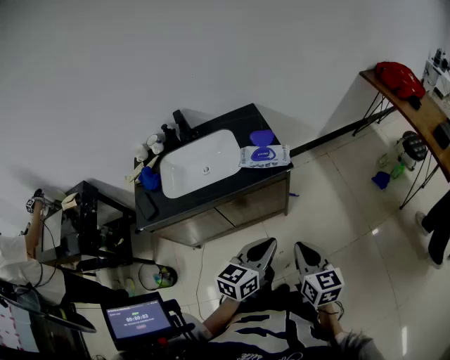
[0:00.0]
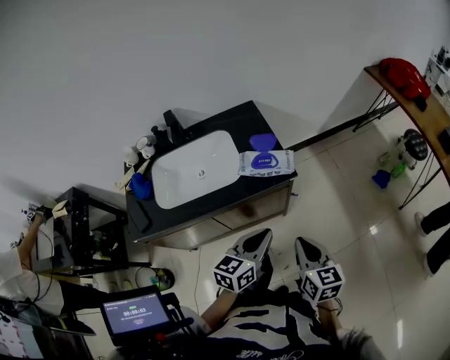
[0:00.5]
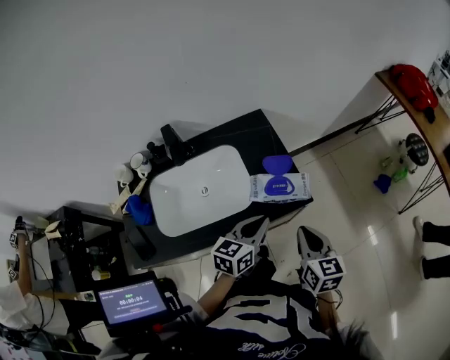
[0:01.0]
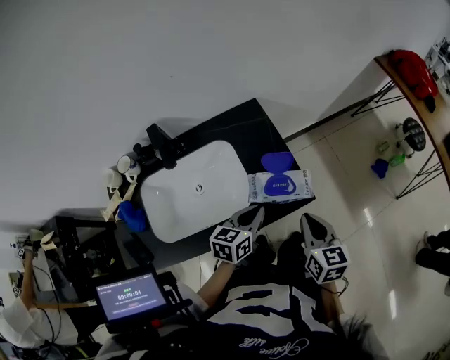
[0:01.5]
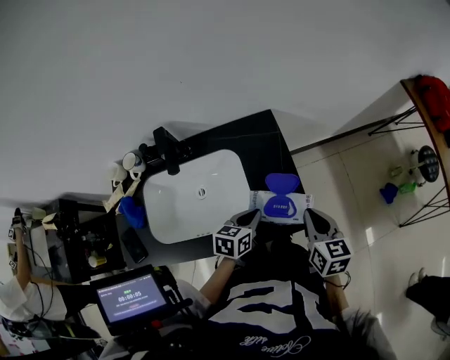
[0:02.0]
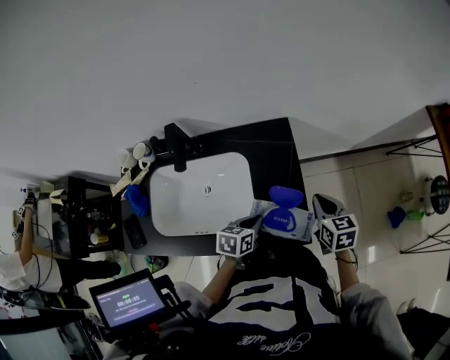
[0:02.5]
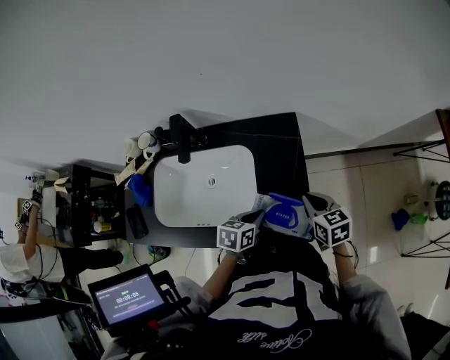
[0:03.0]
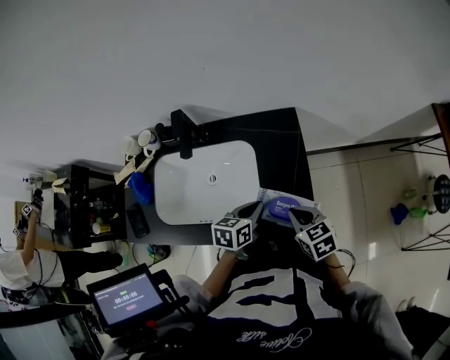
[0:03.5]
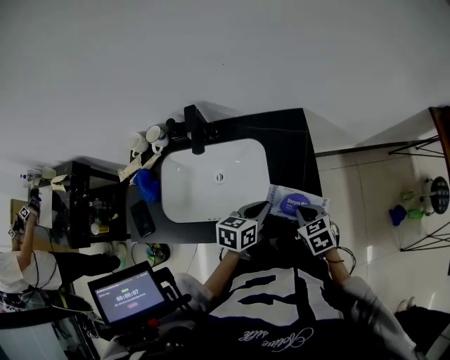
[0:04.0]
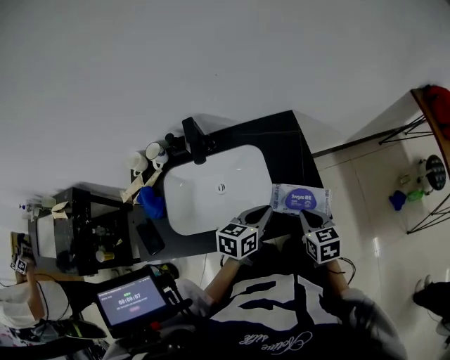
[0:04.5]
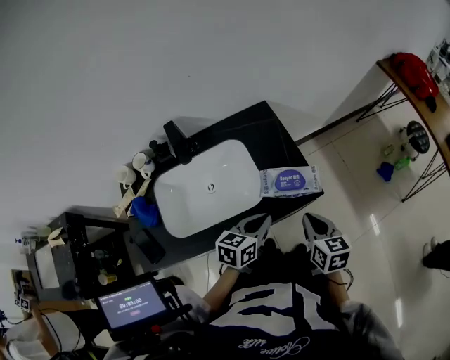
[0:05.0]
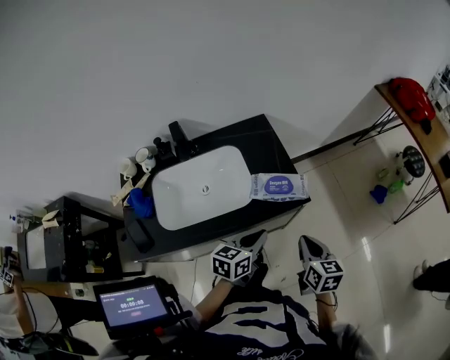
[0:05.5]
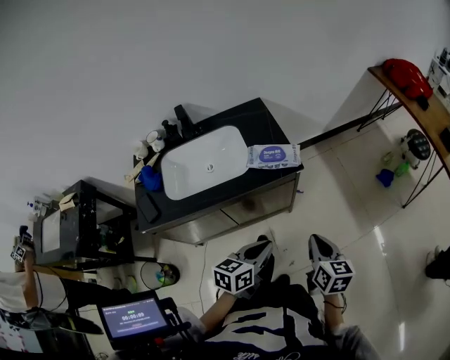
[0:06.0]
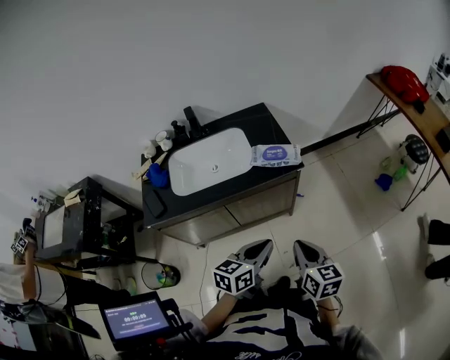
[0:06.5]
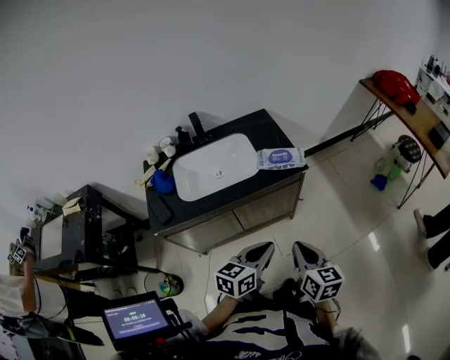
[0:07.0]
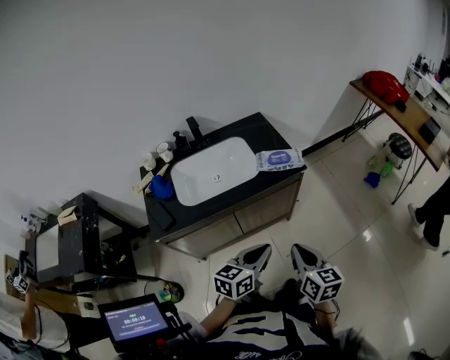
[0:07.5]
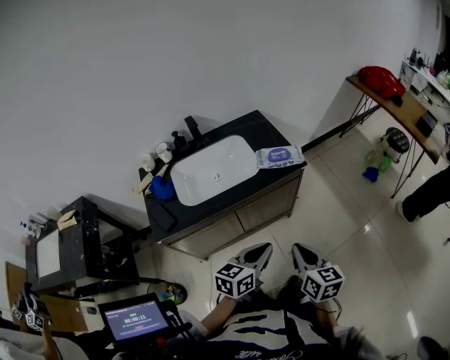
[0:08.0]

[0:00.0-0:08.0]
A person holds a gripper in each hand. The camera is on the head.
0:00.0 to 0:02.0: The left gripper heads forward, to the left and downward, covering approximately 40 cm, and rotates some 20 degrees. The right gripper heads forward, covering approximately 40 cm.
0:02.0 to 0:04.0: The right gripper moves downward and to the left, approximately 10 cm, and swivels about 40 degrees.
0:04.0 to 0:06.0: The left gripper moves backward, approximately 35 cm. Meanwhile the right gripper shifts roughly 35 cm backward and to the right, and turns by approximately 50 degrees.
0:06.0 to 0:08.0: The left gripper moves to the left and backward, about 10 cm. Meanwhile the right gripper shifts roughly 20 cm to the left and backward.

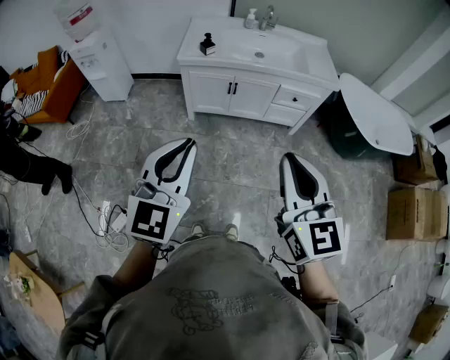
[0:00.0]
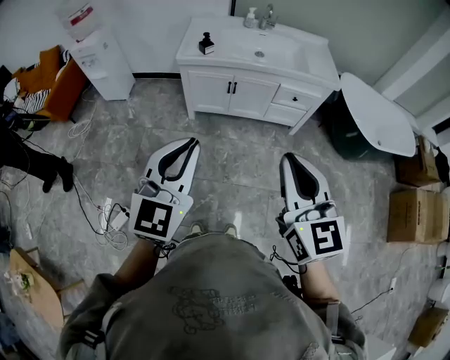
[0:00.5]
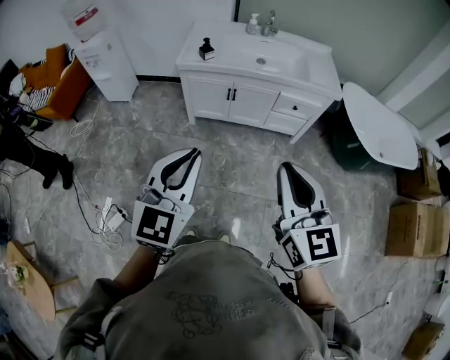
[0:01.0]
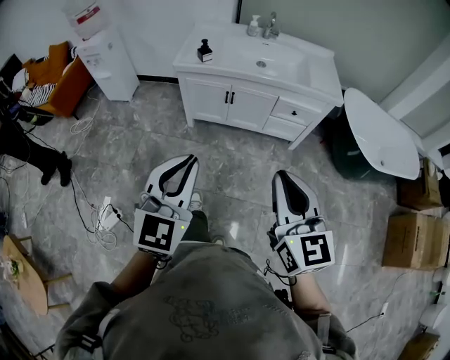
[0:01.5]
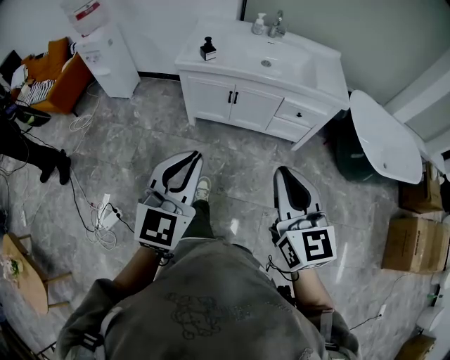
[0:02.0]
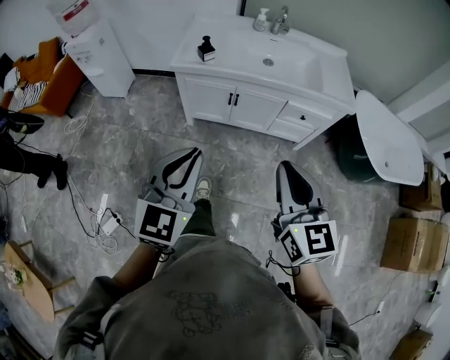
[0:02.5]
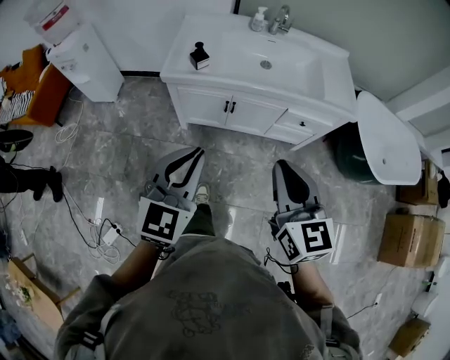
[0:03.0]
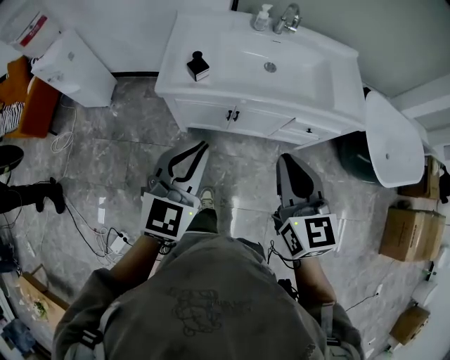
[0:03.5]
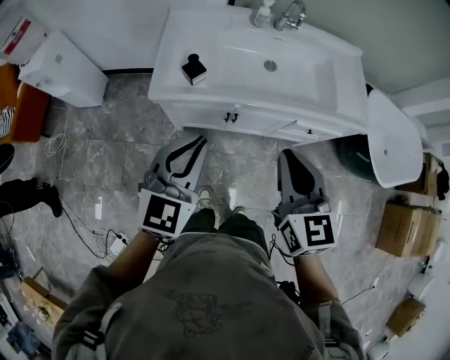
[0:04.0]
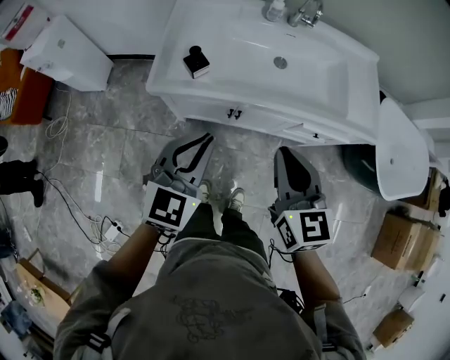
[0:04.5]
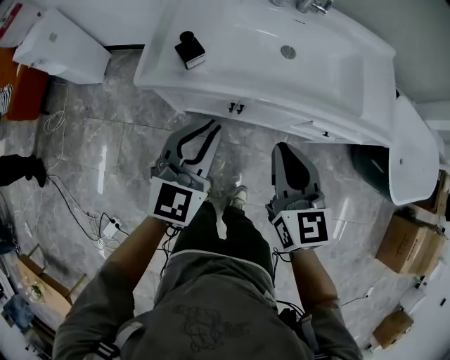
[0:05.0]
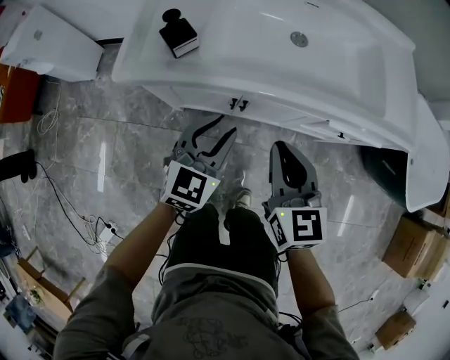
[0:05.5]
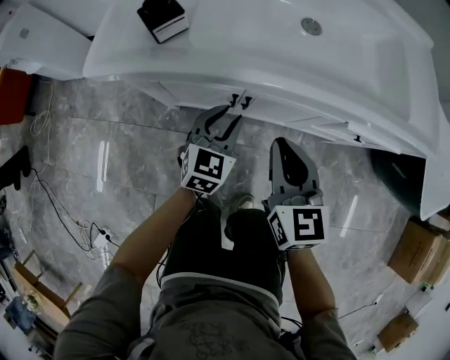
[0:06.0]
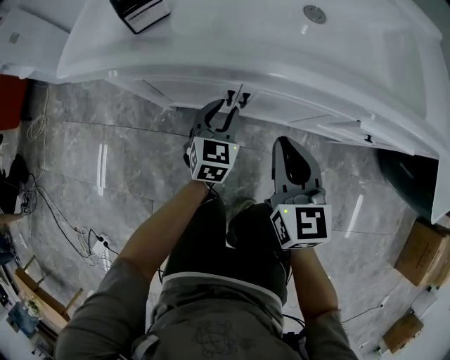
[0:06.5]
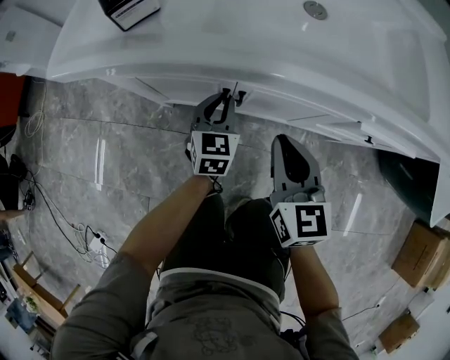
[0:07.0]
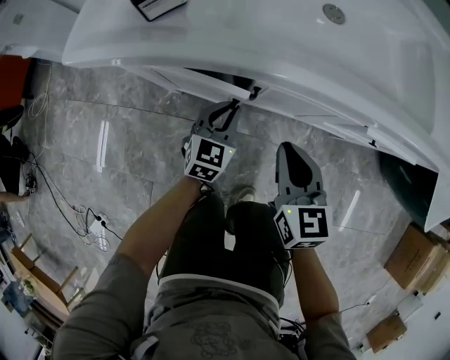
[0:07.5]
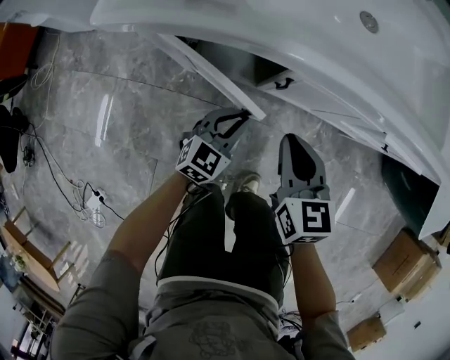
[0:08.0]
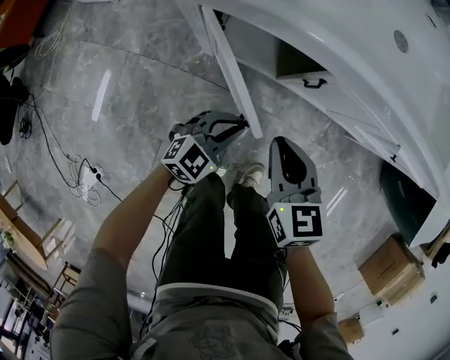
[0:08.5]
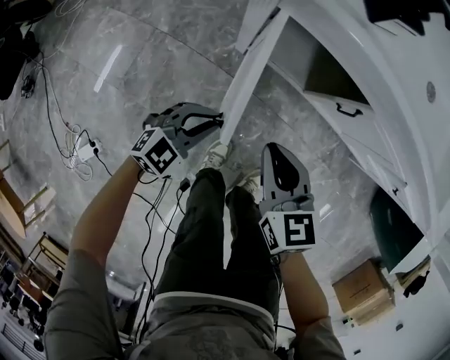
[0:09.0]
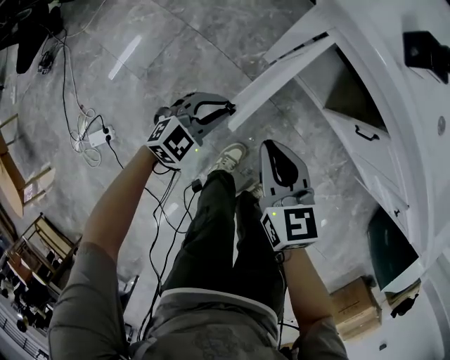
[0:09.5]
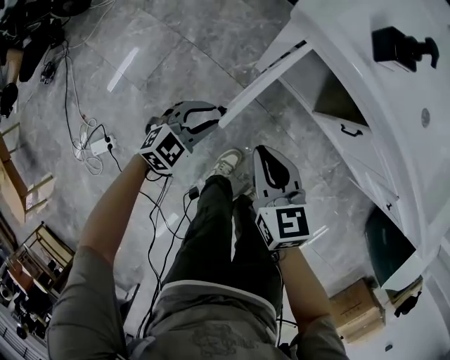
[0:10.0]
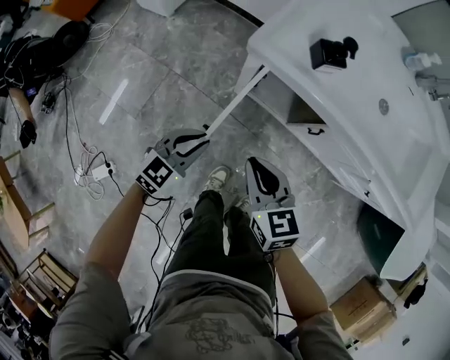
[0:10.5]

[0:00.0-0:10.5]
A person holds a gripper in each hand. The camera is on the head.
0:00.0 to 0:02.0: The right gripper goes about 15 cm forward, to the right and downward, while the left gripper goes roughly 15 cm to the right, forward and downward.
0:02.0 to 0:04.0: The two grippers travel together, forward, about 40 cm.
0:04.0 to 0:06.5: Both grippers travel together downward, about 50 cm. The left gripper swivels roughly 20 degrees, and opens its fingers.
0:06.5 to 0:08.5: The left gripper is displaced backward and to the left by about 20 cm, and changes its angle by roughly 30 degrees. The right gripper goes some 15 cm to the left and backward, and swivels about 20 degrees.
0:08.5 to 0:10.5: Both grippers travel together to the left and upward, roughly 20 cm. The left gripper rotates about 20 degrees.

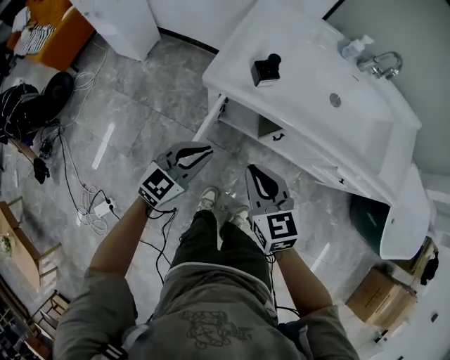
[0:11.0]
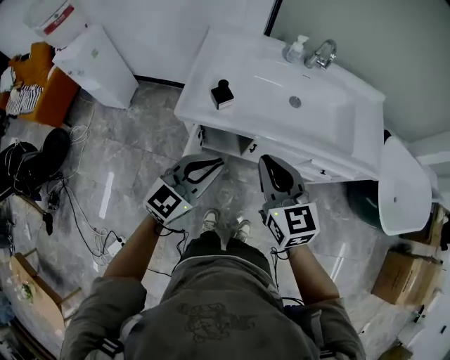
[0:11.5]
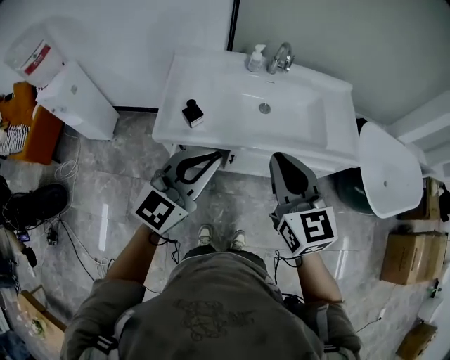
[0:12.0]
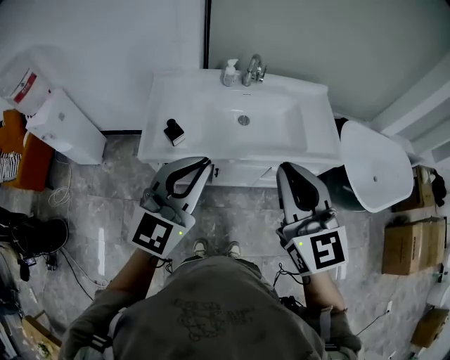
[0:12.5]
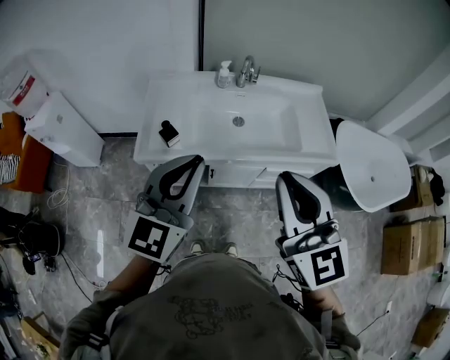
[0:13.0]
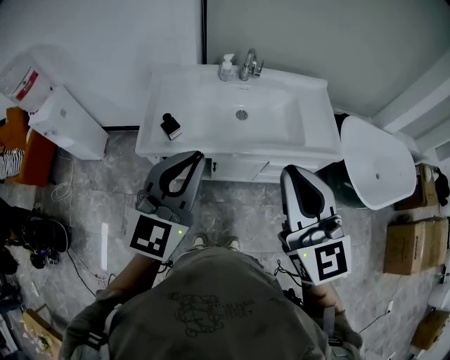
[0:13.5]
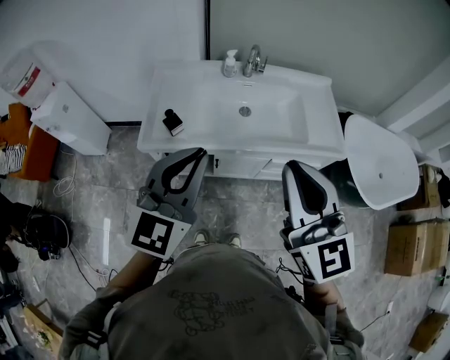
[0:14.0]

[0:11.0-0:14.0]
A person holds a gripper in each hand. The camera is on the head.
0:11.0 to 0:12.5: Both grippers move upward and to the right, roughly 40 cm. The right gripper changes its angle by about 40 degrees. The left gripper rotates roughly 20 degrees.
0:12.5 to 0:14.0: The grippers make only small movements.

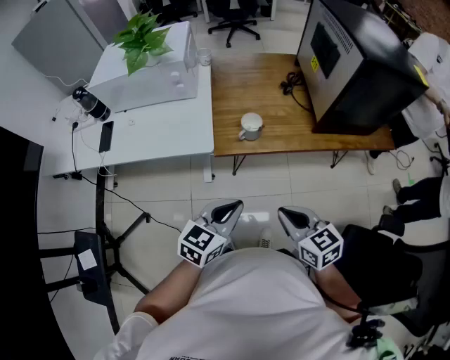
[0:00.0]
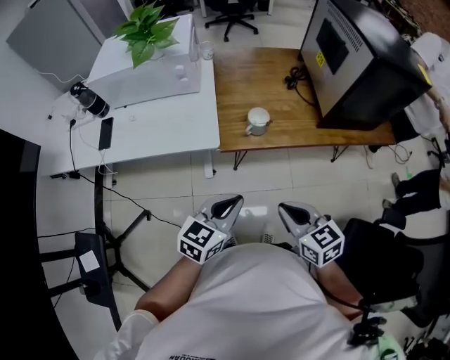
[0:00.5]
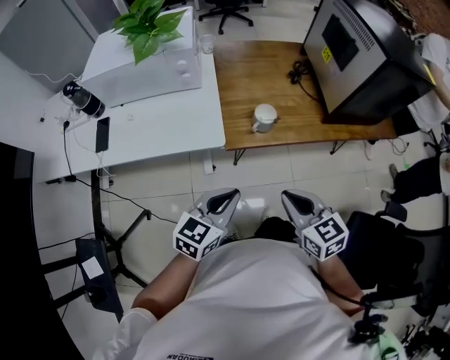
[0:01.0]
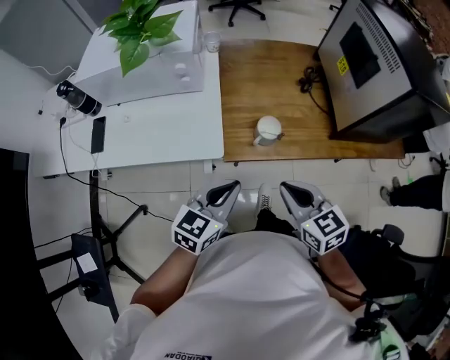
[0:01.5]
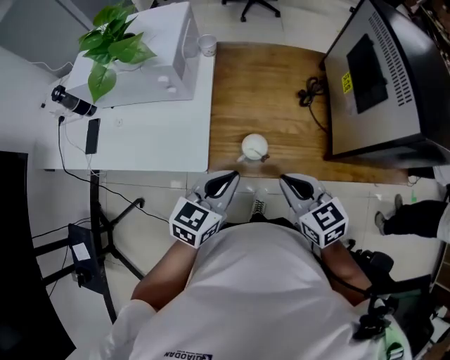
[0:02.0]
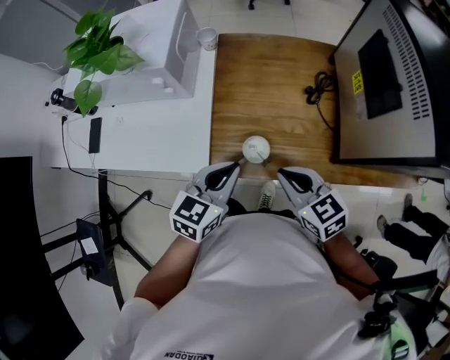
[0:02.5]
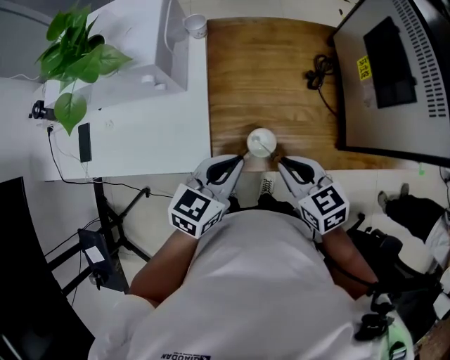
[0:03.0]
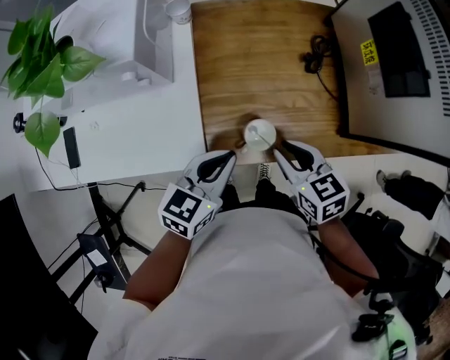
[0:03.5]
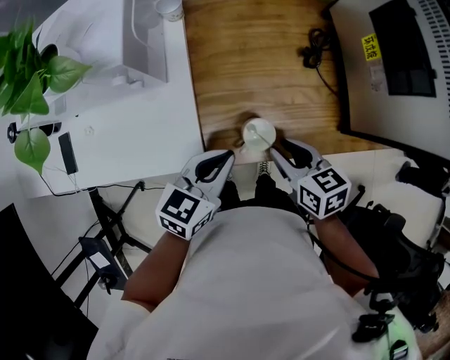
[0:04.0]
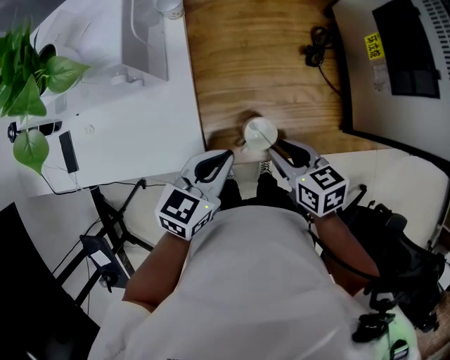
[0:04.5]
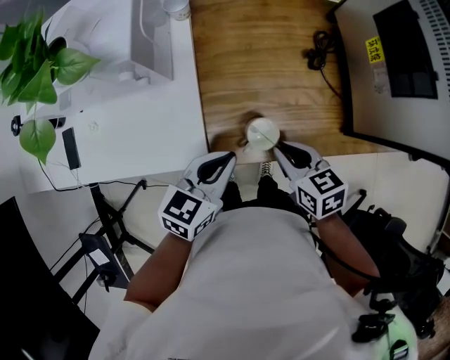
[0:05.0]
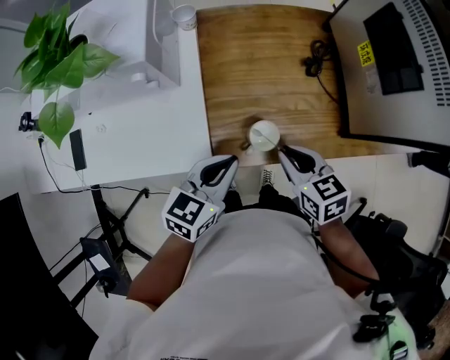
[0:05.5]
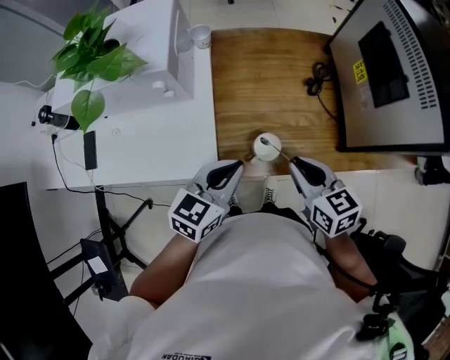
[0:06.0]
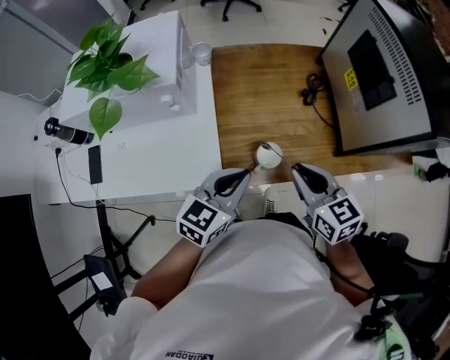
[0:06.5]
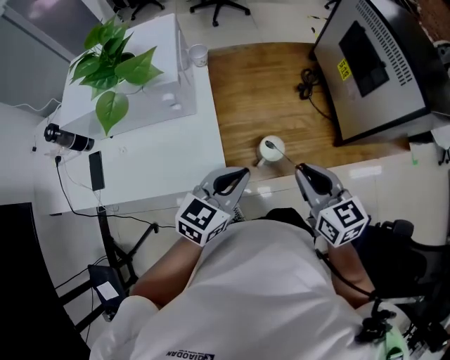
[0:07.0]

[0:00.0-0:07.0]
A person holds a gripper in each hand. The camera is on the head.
0:00.0 to 0:02.0: Both grippers move forward, approximately 25 cm.
0:02.0 to 0:03.5: The left gripper shifts some 5 cm forward. The right gripper heads downward and forward, covering some 10 cm.
0:03.5 to 0:05.0: There are only small adjustments of the grippers.
0:05.0 to 0:07.0: The right gripper heads upward, covering about 15 cm, and rotates roughly 20 degrees. The left gripper travels upward by some 5 cm.
